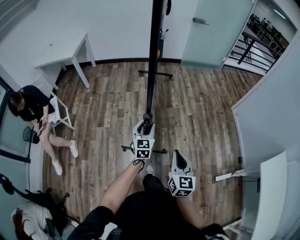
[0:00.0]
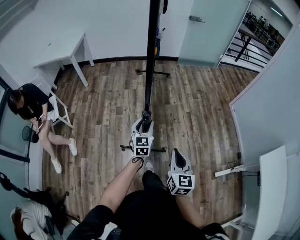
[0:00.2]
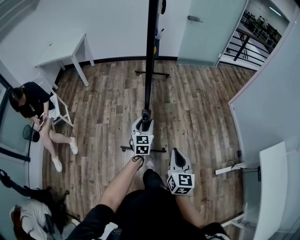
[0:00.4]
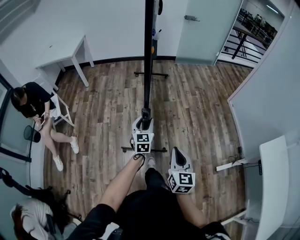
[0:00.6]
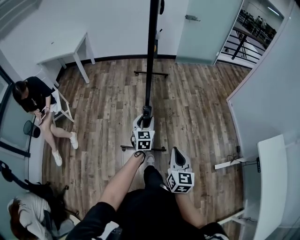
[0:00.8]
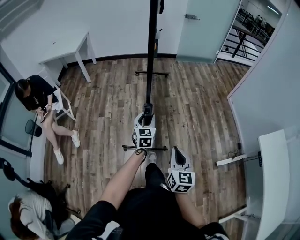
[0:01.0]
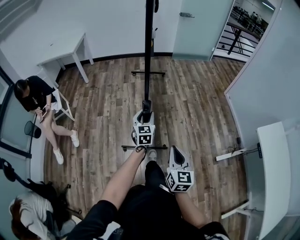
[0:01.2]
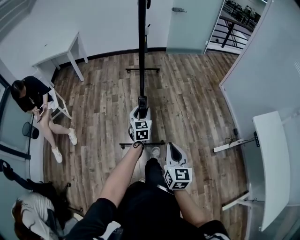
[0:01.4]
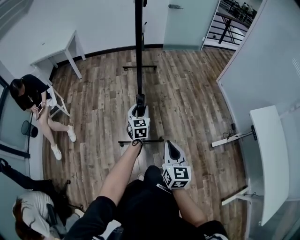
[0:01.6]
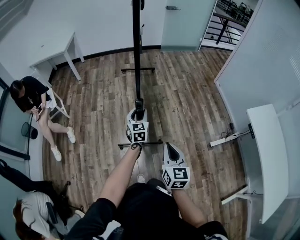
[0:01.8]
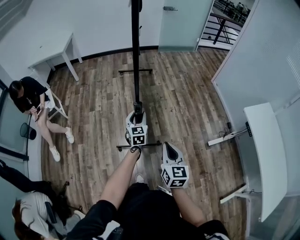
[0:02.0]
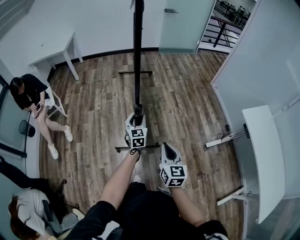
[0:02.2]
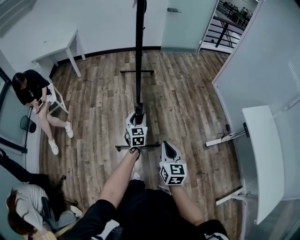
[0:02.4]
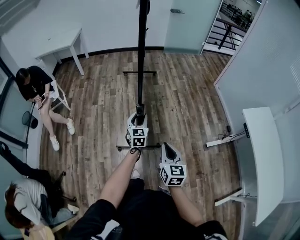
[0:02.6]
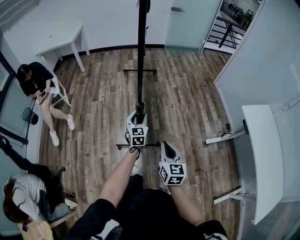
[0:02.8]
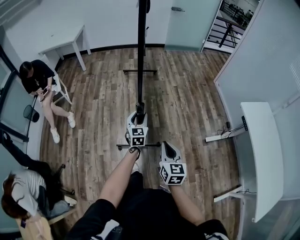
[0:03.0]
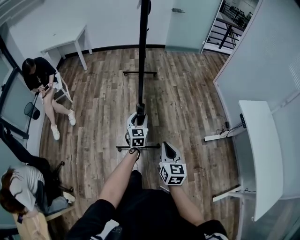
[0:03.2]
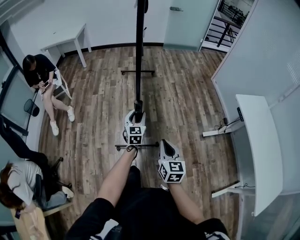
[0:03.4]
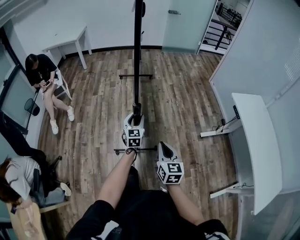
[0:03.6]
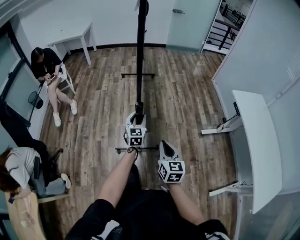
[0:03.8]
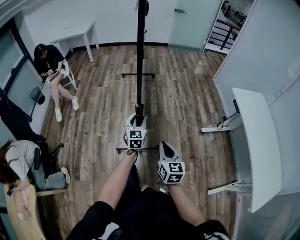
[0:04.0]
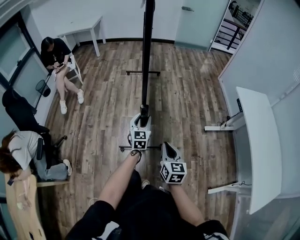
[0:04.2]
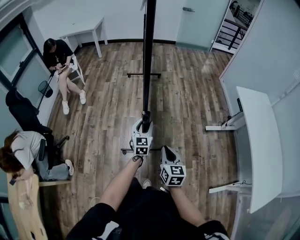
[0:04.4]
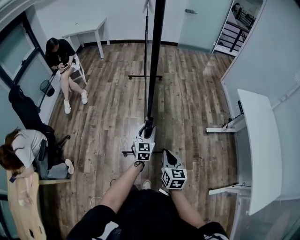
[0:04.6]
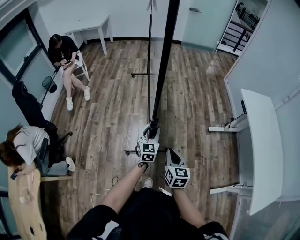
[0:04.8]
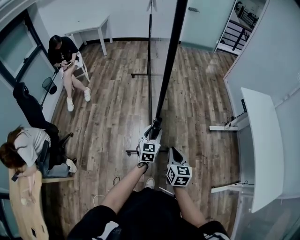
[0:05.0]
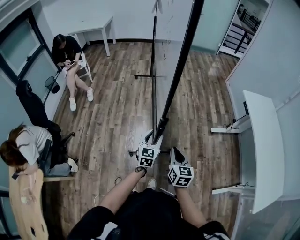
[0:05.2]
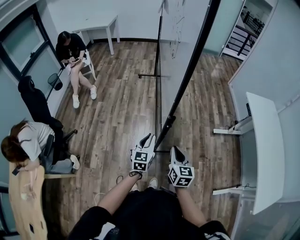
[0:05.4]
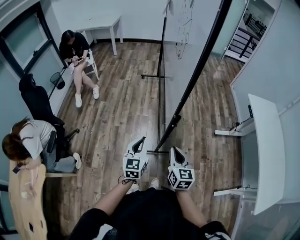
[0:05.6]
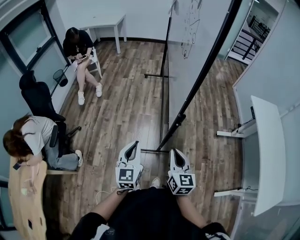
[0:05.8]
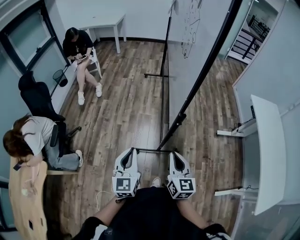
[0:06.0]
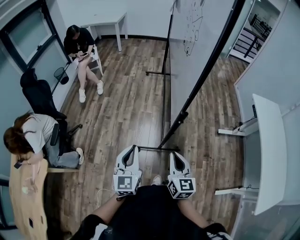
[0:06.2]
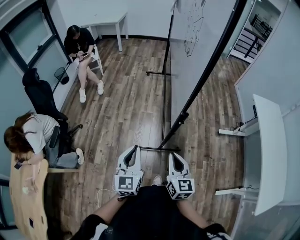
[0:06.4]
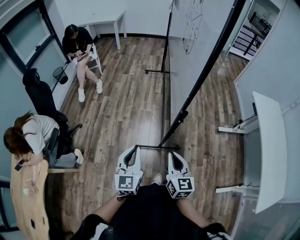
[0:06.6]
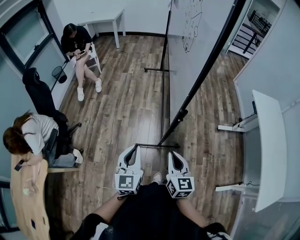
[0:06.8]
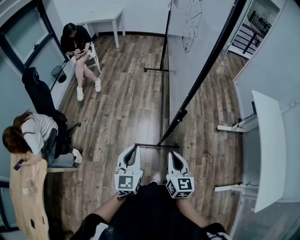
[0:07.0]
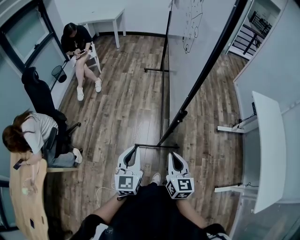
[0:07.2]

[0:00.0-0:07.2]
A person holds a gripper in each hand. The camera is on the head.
0:00.0 to 0:01.4: The grippers both shift backward by roughly 25 cm.
0:01.4 to 0:02.8: Both grippers move backward, approximately 15 cm.
0:02.8 to 0:04.4: Both grippers travel together backward, approximately 35 cm.
0:04.4 to 0:05.8: The left gripper moves backward, to the left and upward, approximately 30 cm, and closes up. Meanwhile the right gripper moves to the left, backward and upward, about 15 cm.
0:05.8 to 0:07.2: The grippers stay close to where they were, moving slightly.

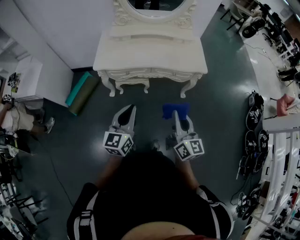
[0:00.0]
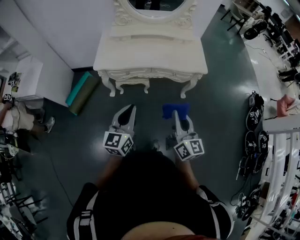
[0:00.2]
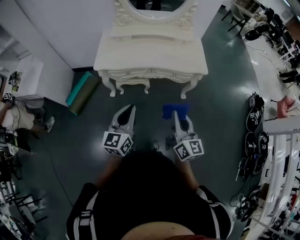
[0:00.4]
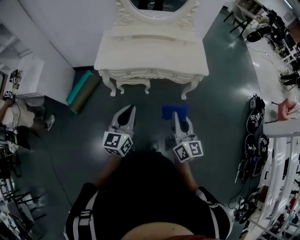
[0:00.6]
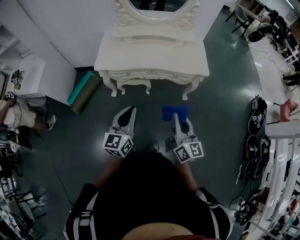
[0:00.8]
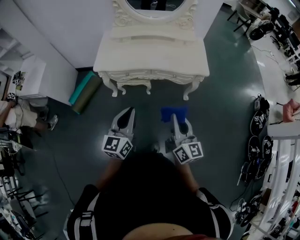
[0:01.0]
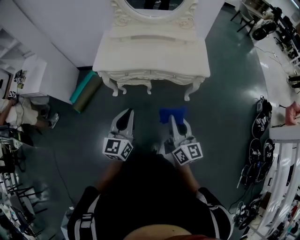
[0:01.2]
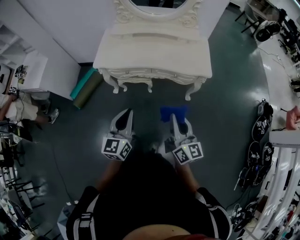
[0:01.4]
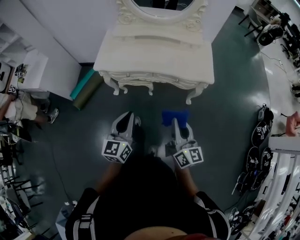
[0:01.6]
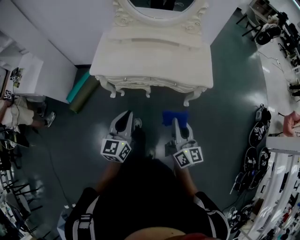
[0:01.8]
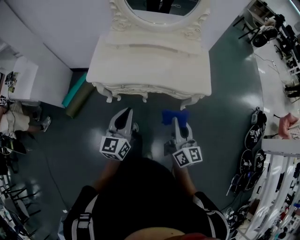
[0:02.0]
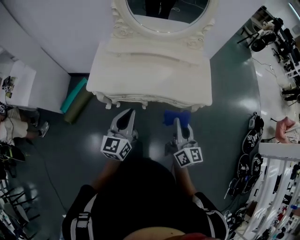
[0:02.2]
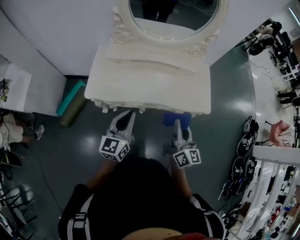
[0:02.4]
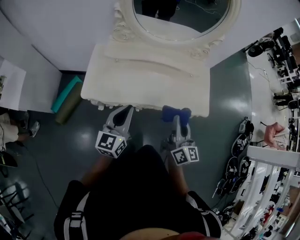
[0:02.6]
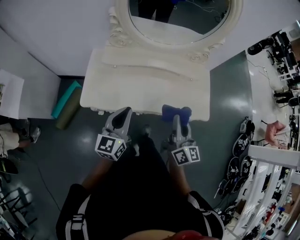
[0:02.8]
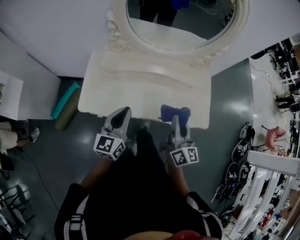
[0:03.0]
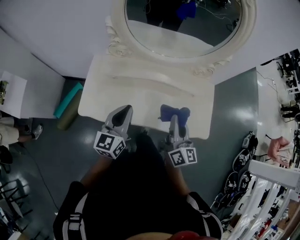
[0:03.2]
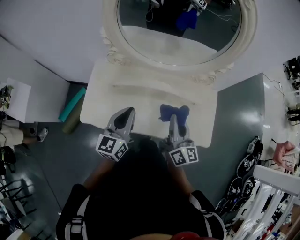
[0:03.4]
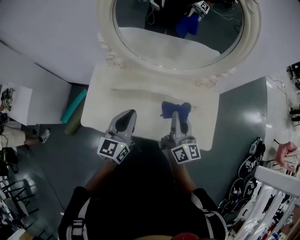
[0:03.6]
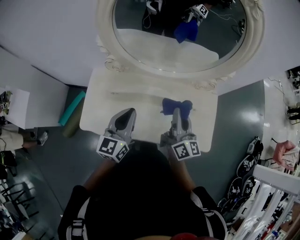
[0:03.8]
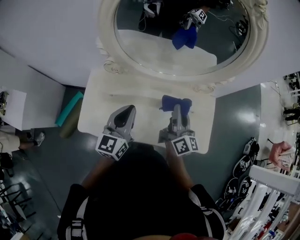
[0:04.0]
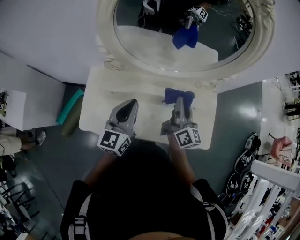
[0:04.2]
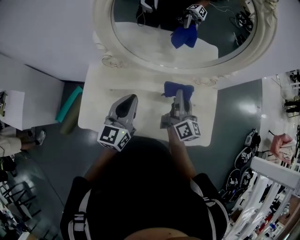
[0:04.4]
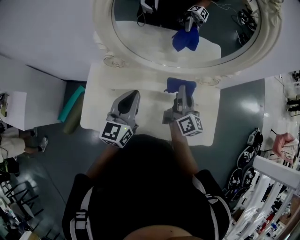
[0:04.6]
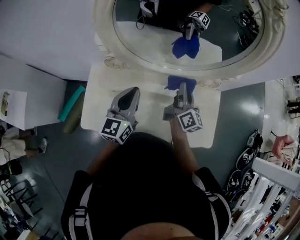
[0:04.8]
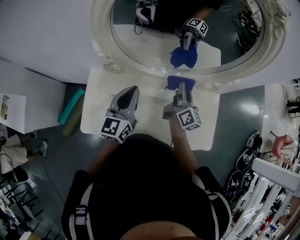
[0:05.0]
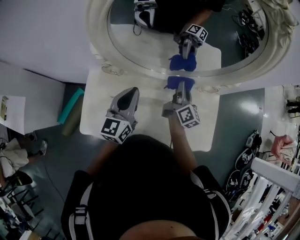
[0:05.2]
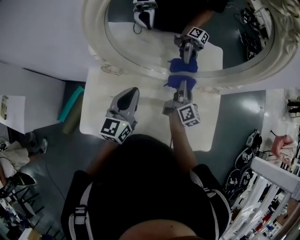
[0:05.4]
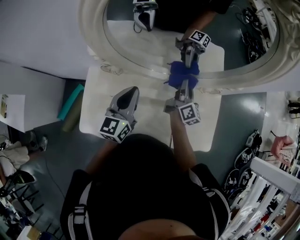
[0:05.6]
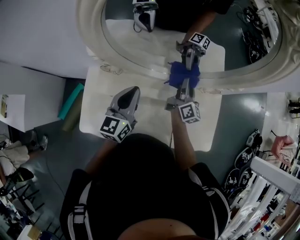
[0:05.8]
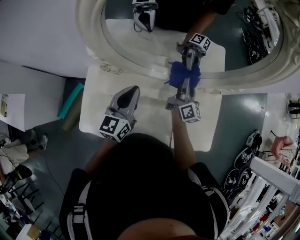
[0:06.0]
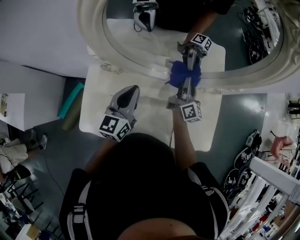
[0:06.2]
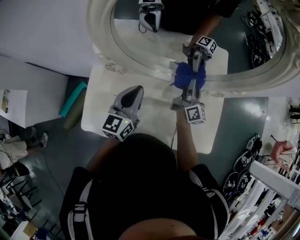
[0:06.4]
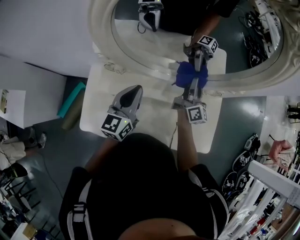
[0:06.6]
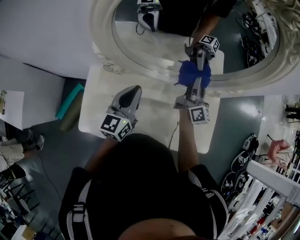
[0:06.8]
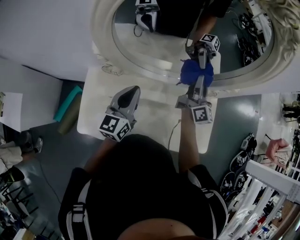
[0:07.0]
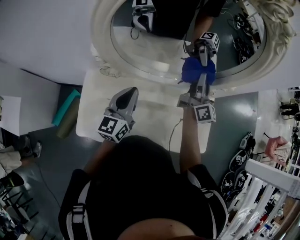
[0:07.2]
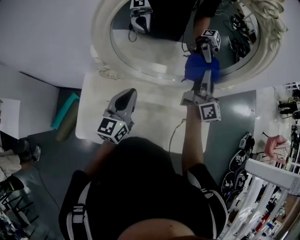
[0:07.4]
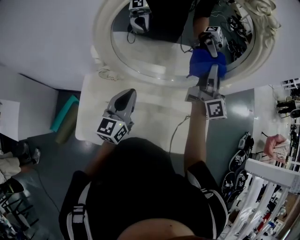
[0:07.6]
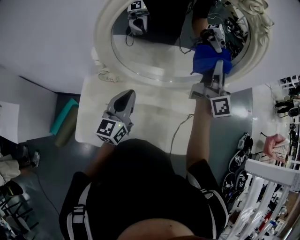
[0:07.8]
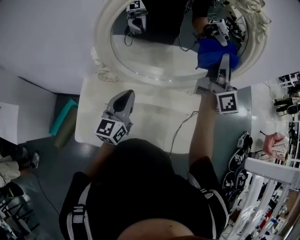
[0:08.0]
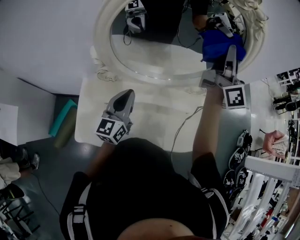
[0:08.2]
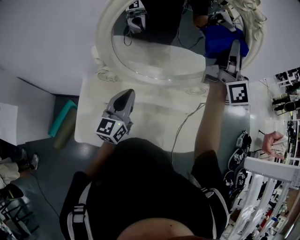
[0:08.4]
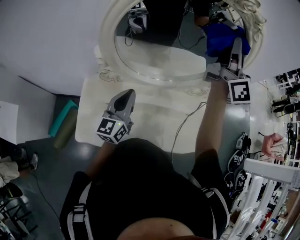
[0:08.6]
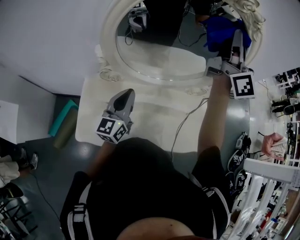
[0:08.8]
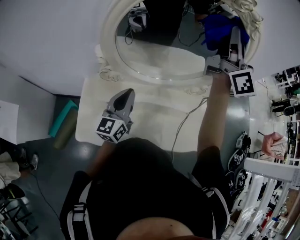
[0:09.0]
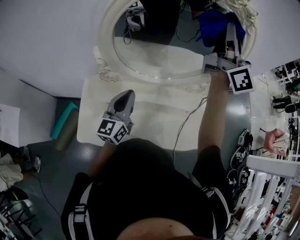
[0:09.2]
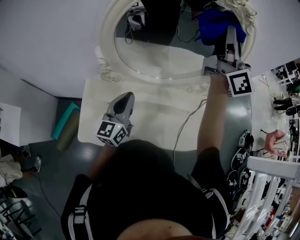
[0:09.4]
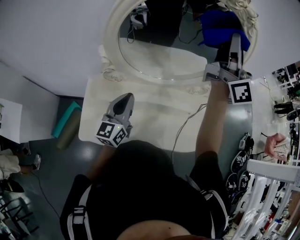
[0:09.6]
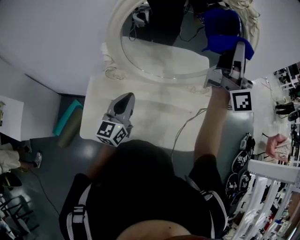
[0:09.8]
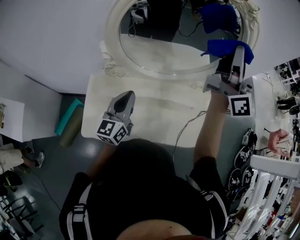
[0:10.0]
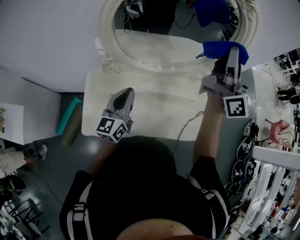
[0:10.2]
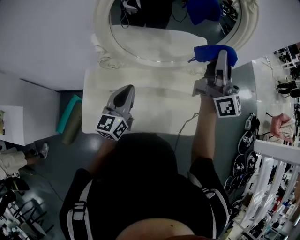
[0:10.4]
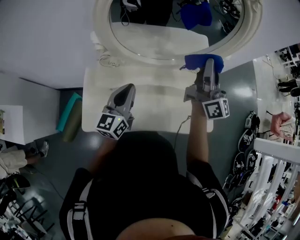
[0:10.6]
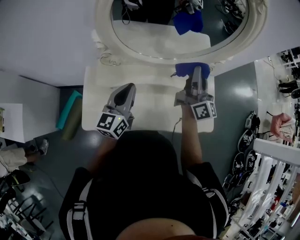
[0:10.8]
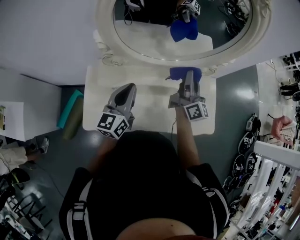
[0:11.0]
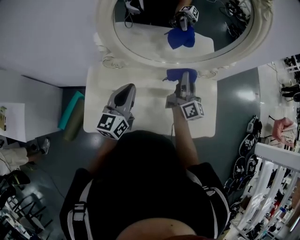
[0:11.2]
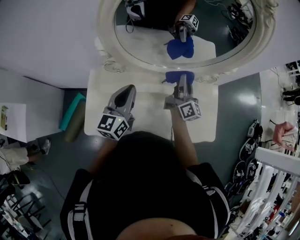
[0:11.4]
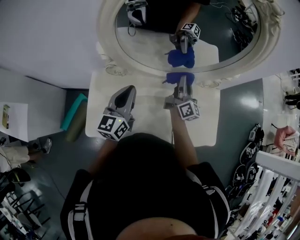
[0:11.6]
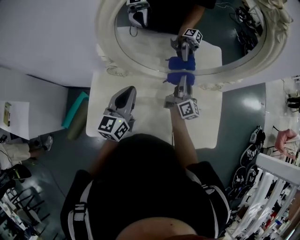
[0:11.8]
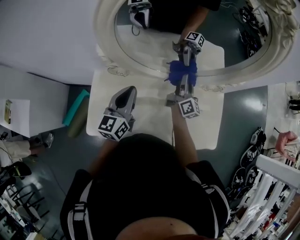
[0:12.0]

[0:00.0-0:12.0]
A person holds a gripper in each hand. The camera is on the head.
0:00.0 to 0:01.6: The right gripper moves to the right and forward, some 10 cm. Meanwhile the left gripper goes some 5 cm to the right.
0:01.6 to 0:03.0: Both grippers move forward, about 35 cm.
0:03.0 to 0:04.4: Both grippers move forward, approximately 20 cm.
0:04.4 to 0:06.0: The left gripper shifts approximately 10 cm forward. Meanwhile the right gripper is displaced forward and downward by approximately 15 cm.
0:06.0 to 0:07.6: The right gripper shifts some 25 cm upward.
0:07.6 to 0:09.0: The right gripper heads upward, covering roughly 20 cm.
0:09.0 to 0:10.4: The right gripper moves downward and backward, roughly 15 cm.
0:10.4 to 0:12.0: The left gripper heads forward, covering about 5 cm; the right gripper goes approximately 30 cm downward, and rotates about 30 degrees.

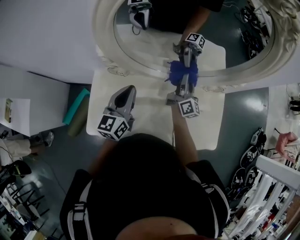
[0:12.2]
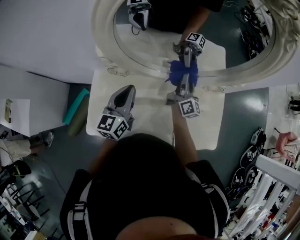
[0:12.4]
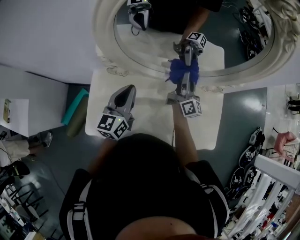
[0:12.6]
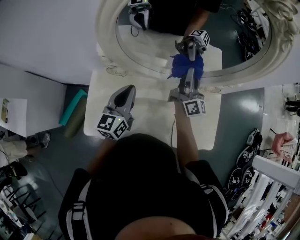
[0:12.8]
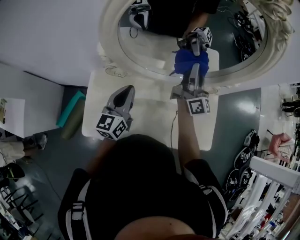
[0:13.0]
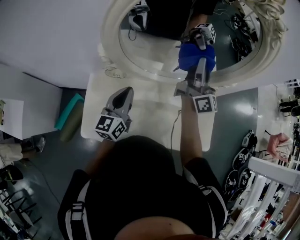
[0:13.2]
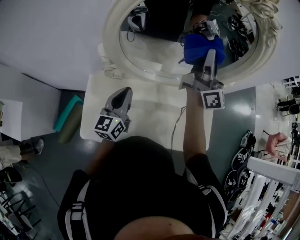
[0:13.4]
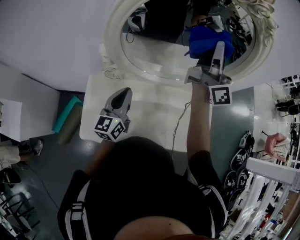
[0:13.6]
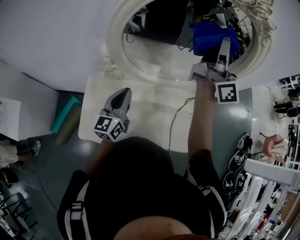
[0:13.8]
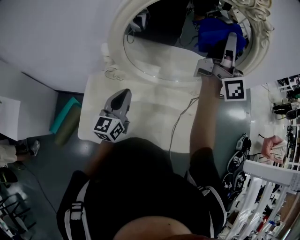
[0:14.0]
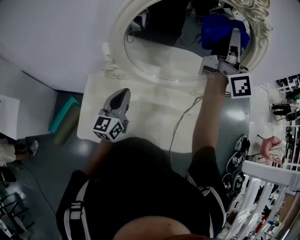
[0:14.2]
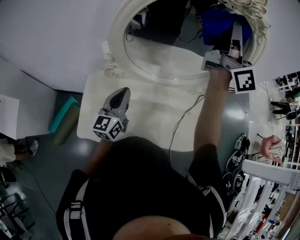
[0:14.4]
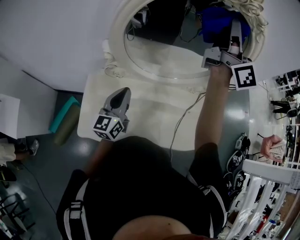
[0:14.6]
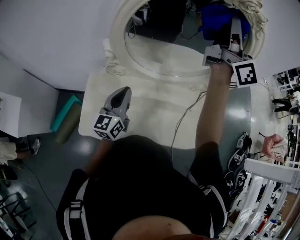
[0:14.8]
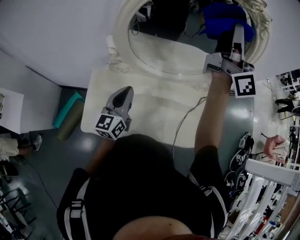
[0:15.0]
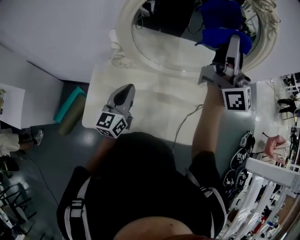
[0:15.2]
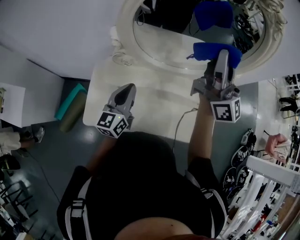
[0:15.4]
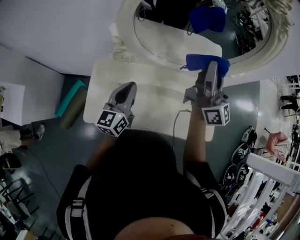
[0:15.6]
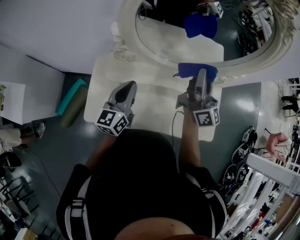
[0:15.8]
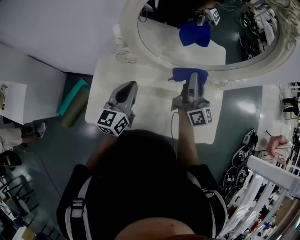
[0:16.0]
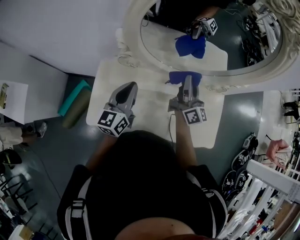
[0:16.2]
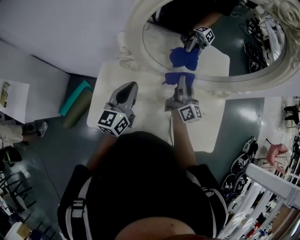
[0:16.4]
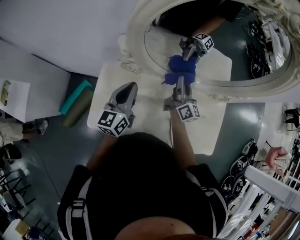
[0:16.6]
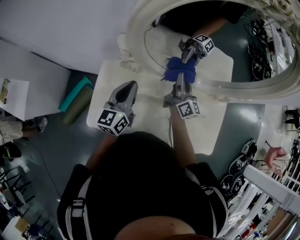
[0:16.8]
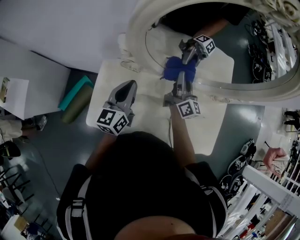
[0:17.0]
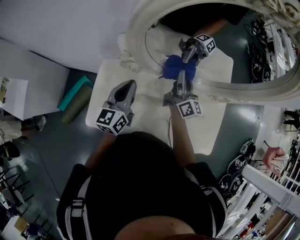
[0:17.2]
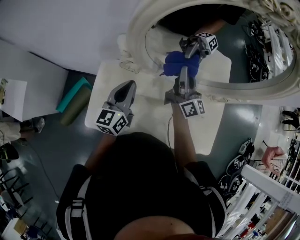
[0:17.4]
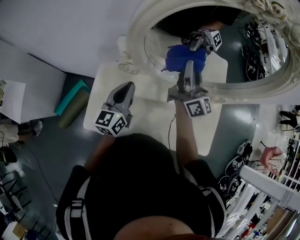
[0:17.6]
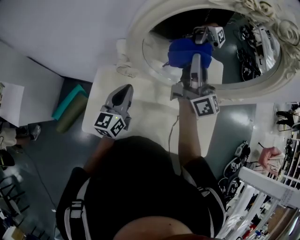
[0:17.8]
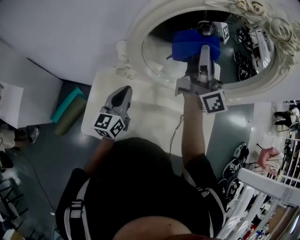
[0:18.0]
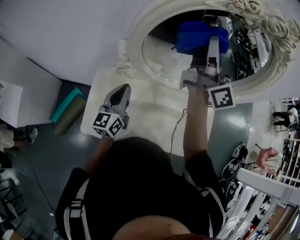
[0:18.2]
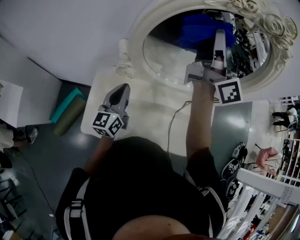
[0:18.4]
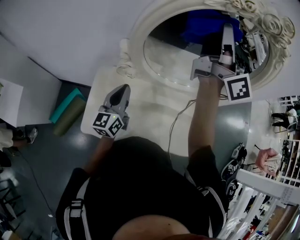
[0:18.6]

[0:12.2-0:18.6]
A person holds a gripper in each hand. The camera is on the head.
0:12.2 to 0:13.8: The right gripper moves upward, some 35 cm, and rotates about 30 degrees.
0:13.8 to 0:15.4: The right gripper is displaced backward and to the left by some 10 cm; the left gripper ends up roughly 5 cm from where it was.
0:15.4 to 0:17.0: The right gripper travels downward by roughly 30 cm, and rotates some 30 degrees, while the left gripper is displaced forward by some 10 cm.
0:17.0 to 0:18.6: The right gripper travels upward by roughly 40 cm, and swivels about 20 degrees.
